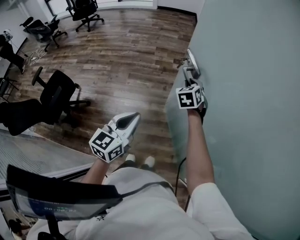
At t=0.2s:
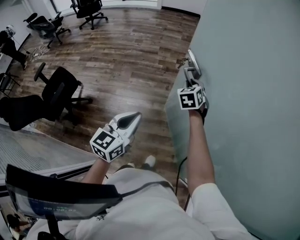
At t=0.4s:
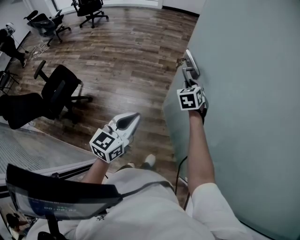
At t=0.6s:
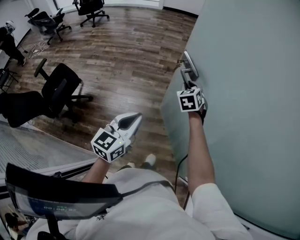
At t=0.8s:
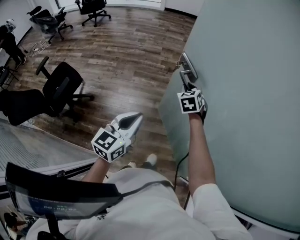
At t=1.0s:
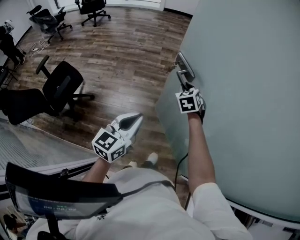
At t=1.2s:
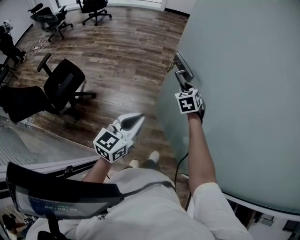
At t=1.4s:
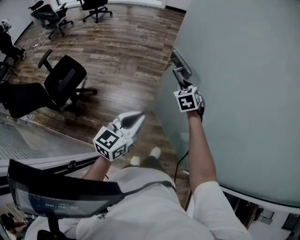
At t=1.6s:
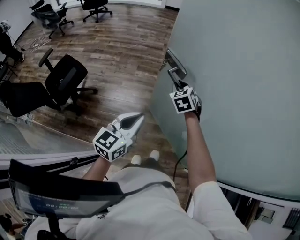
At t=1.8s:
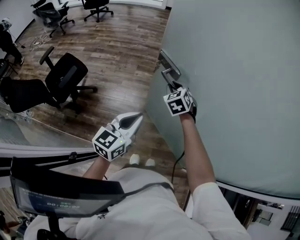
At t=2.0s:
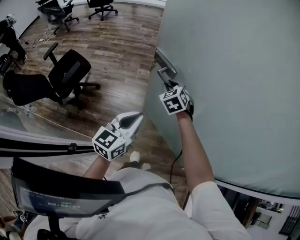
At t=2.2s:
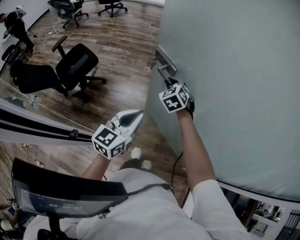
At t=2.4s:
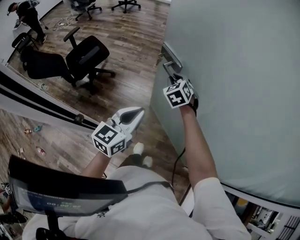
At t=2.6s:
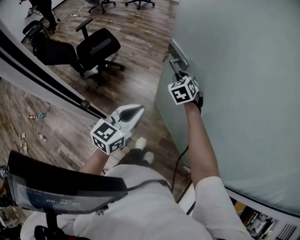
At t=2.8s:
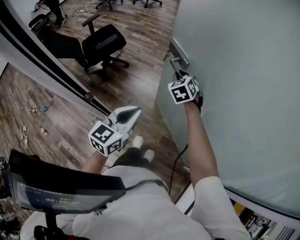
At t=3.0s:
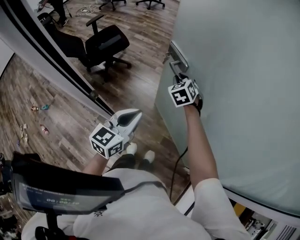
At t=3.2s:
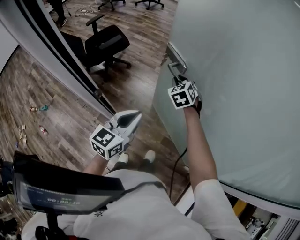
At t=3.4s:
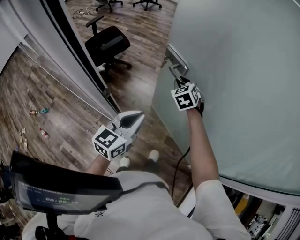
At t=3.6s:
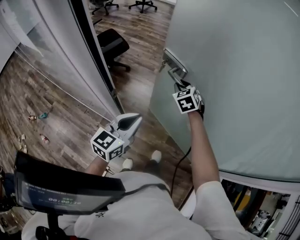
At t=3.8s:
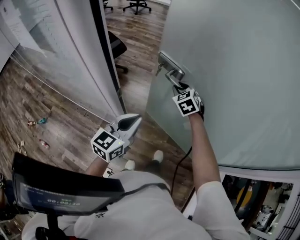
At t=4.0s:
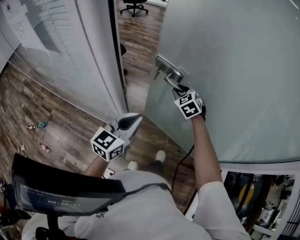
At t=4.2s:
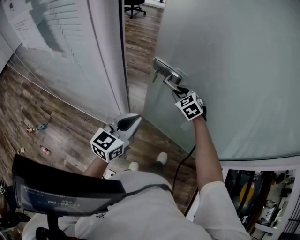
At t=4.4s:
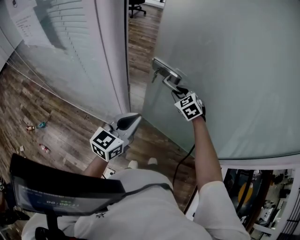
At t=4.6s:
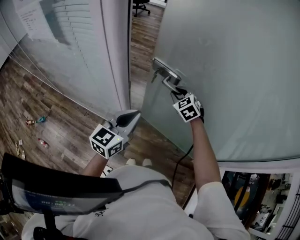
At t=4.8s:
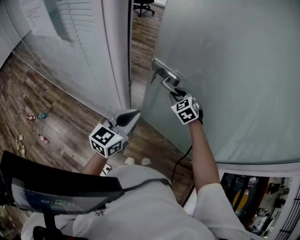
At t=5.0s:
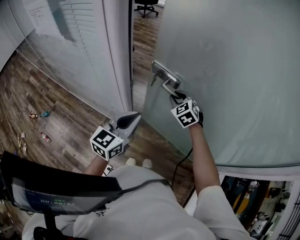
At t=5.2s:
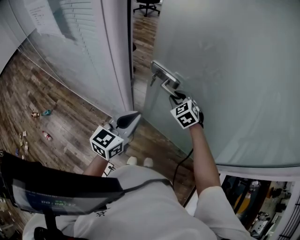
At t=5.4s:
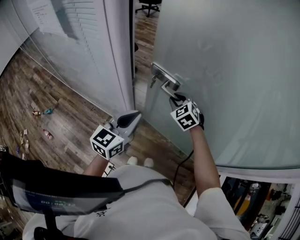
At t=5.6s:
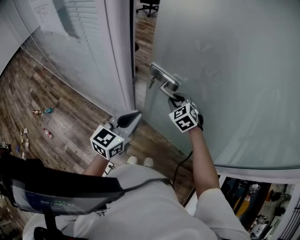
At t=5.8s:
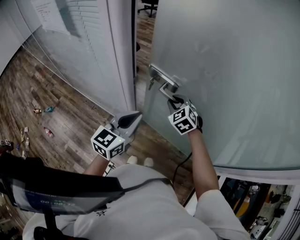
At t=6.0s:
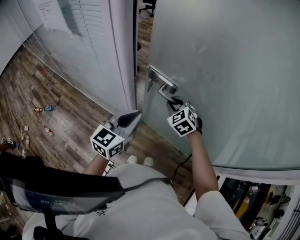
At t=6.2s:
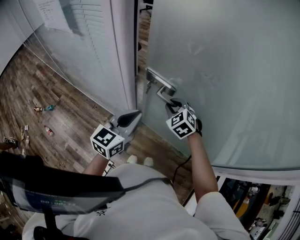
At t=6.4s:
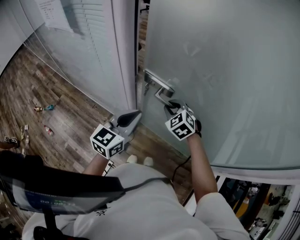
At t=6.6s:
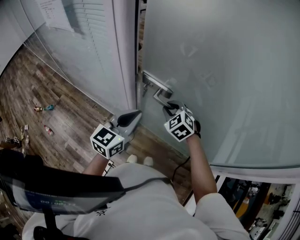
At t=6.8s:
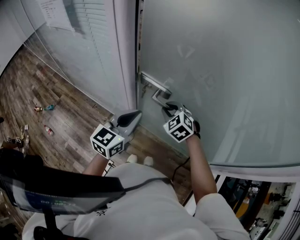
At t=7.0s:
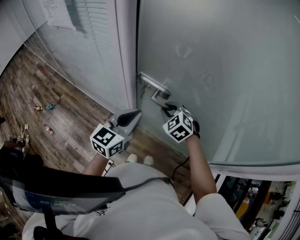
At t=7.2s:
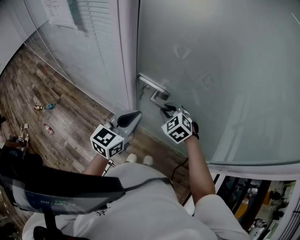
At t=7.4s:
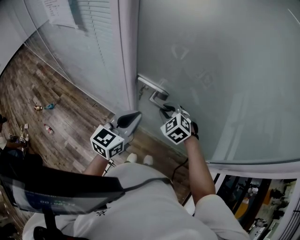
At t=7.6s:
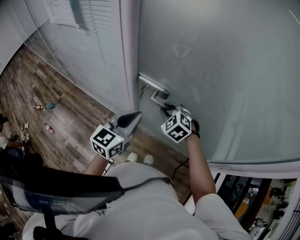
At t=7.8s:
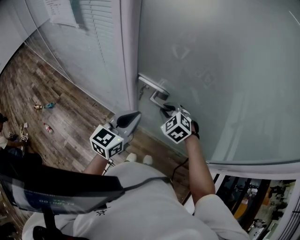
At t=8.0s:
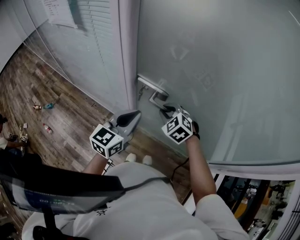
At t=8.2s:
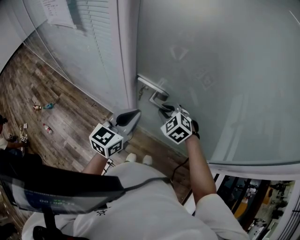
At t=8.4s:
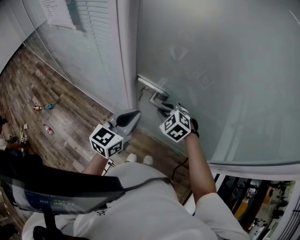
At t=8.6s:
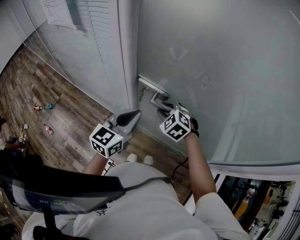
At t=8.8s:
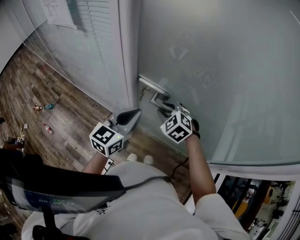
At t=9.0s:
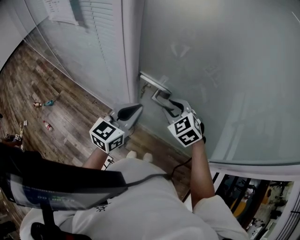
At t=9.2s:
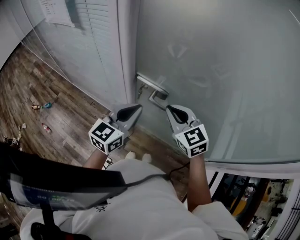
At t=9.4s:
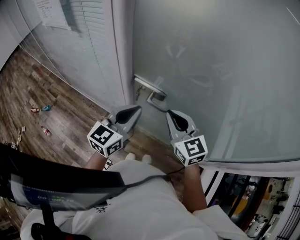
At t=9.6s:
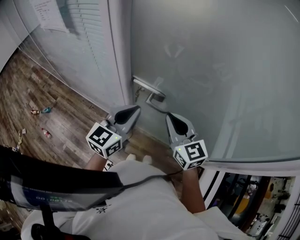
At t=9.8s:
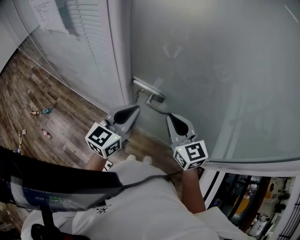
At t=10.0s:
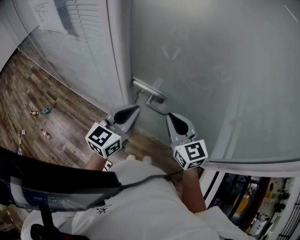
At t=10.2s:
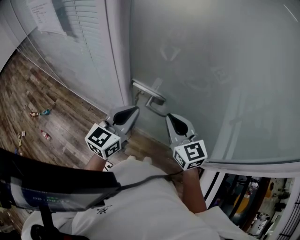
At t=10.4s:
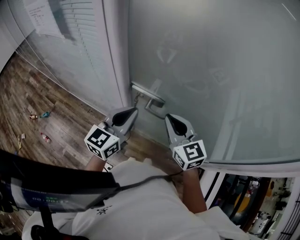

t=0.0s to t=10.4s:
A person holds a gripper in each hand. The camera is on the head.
t=0.0s to t=1.4s: The two grippers go about 20 cm backward and to the left.
t=1.4s to t=3.0s: The right gripper heads backward and to the left, covering about 25 cm, and swivels about 20 degrees; the left gripper heads backward, covering some 25 cm, and swivels about 20 degrees.
t=3.0s to t=4.4s: The left gripper travels to the left and backward by about 20 cm; the right gripper goes approximately 20 cm backward and to the left.
t=4.4s to t=6.0s: The right gripper is displaced backward by approximately 10 cm.
t=6.0s to t=7.4s: The right gripper shifts approximately 10 cm backward.
t=7.4s to t=9.0s: The right gripper shifts some 5 cm upward.
t=9.0s to t=10.4s: The right gripper goes roughly 5 cm upward, changes its angle by some 40 degrees, and closes.

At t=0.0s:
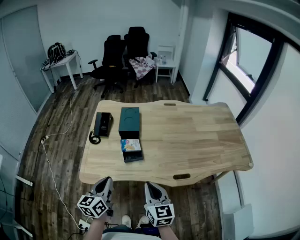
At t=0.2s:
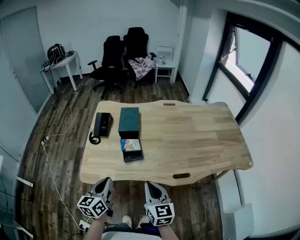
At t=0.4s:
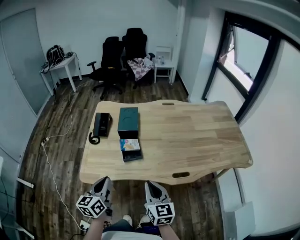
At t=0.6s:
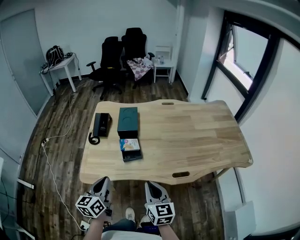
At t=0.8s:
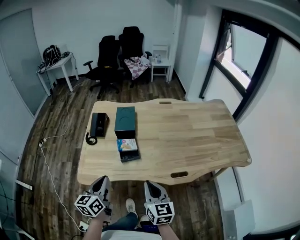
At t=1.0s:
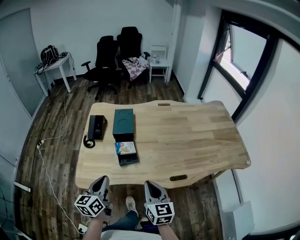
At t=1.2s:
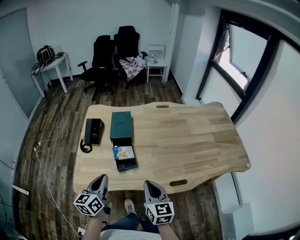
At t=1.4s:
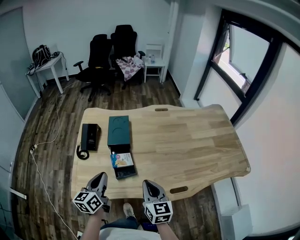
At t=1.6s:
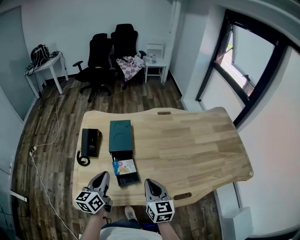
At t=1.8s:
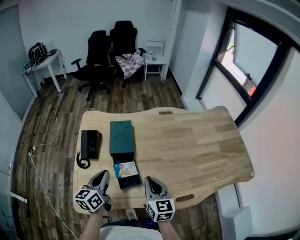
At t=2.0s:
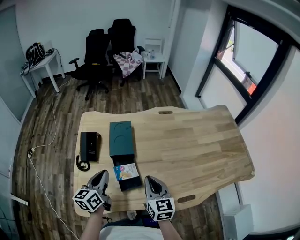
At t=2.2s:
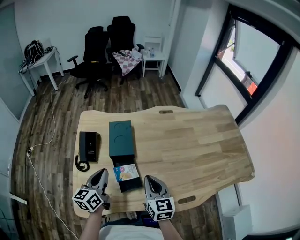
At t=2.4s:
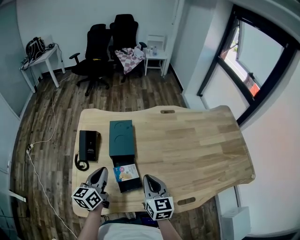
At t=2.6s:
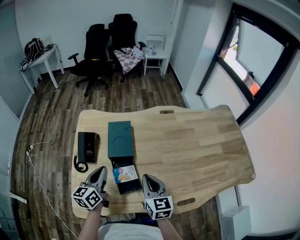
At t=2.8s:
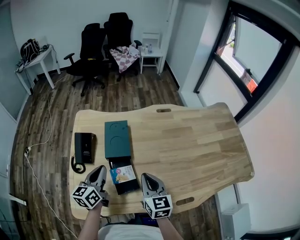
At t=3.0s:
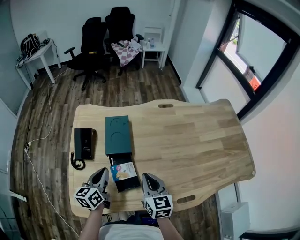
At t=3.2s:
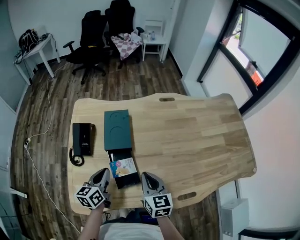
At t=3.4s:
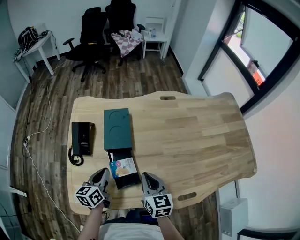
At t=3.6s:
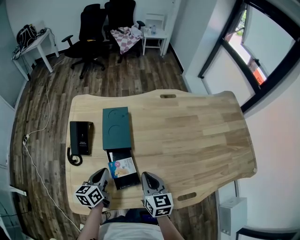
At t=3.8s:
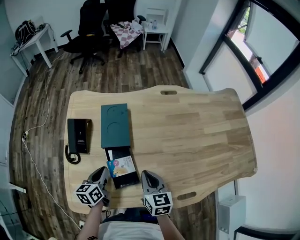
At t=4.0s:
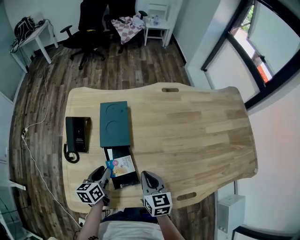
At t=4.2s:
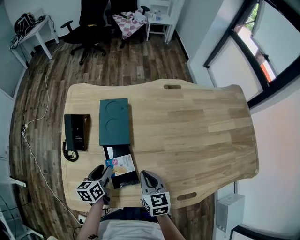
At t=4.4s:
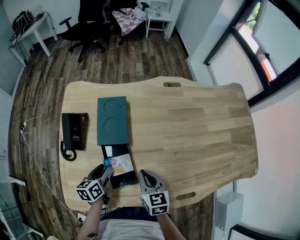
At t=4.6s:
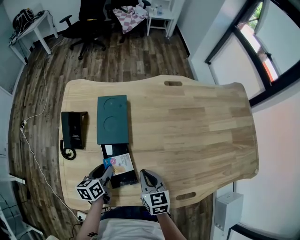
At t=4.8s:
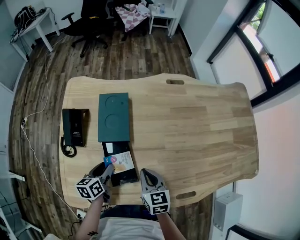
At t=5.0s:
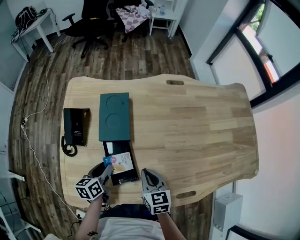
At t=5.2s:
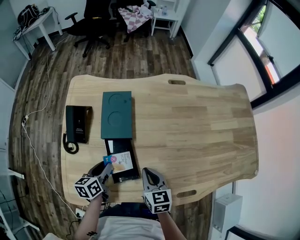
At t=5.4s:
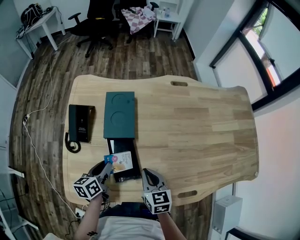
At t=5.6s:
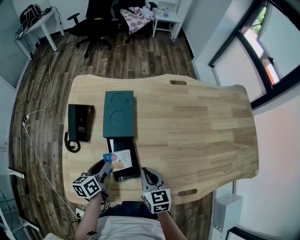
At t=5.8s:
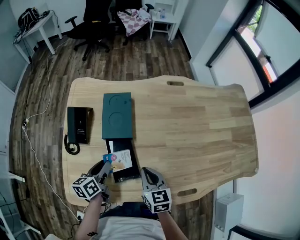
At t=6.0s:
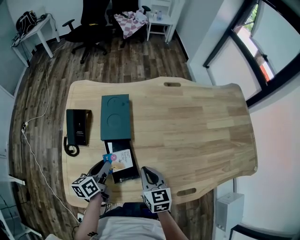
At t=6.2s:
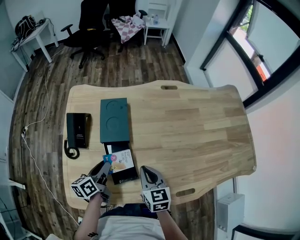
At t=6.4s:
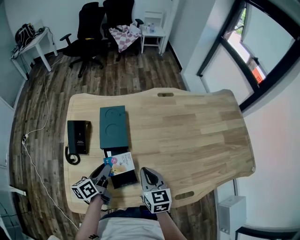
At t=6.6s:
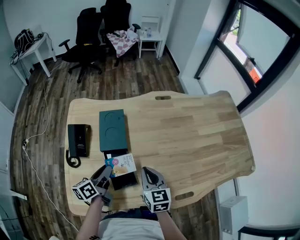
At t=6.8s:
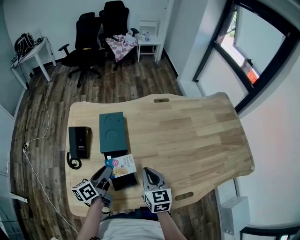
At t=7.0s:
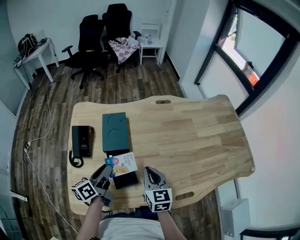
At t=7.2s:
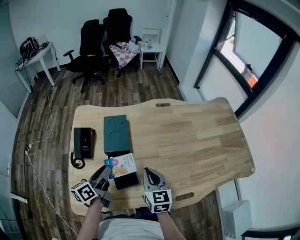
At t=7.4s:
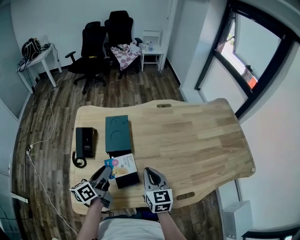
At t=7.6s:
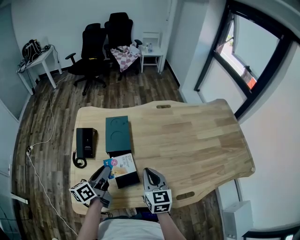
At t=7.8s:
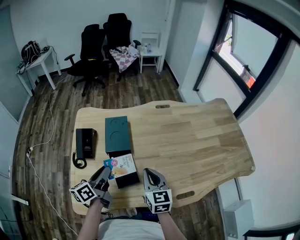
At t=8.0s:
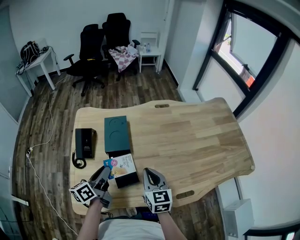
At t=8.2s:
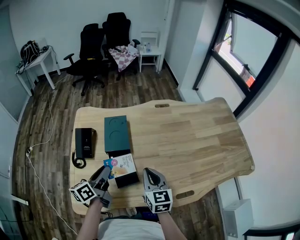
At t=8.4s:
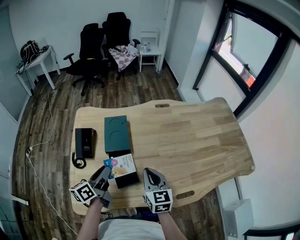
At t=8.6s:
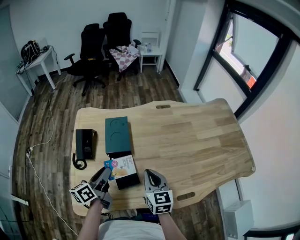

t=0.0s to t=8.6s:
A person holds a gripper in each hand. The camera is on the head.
t=0.0s to t=1.4s: The grippers both shift forward by approximately 15 cm.
t=1.4s to t=2.8s: Both grippers travel together forward, about 15 cm.
t=2.8s to t=4.4s: Both grippers travel together downward, roughly 15 cm. The left gripper rotates roughly 30 degrees, and opens its fingers.
t=4.4s to t=5.8s: The grippers stay close to where they were, moving slightly.
t=5.8s to t=7.2s: The grippers both shift upward by approximately 10 cm.
t=7.2s to t=8.6s: There are only small adjustments of the grippers.

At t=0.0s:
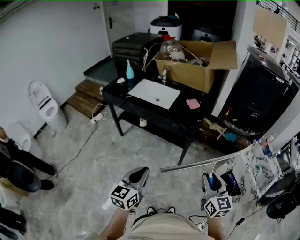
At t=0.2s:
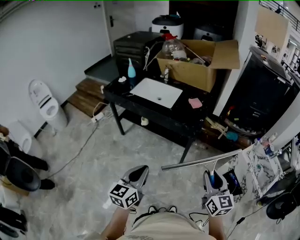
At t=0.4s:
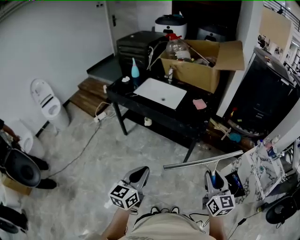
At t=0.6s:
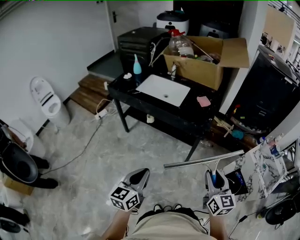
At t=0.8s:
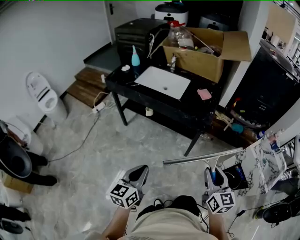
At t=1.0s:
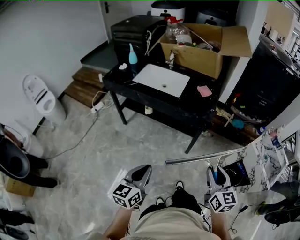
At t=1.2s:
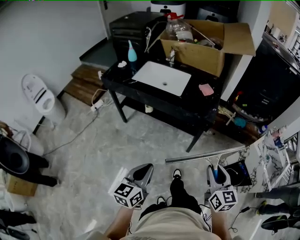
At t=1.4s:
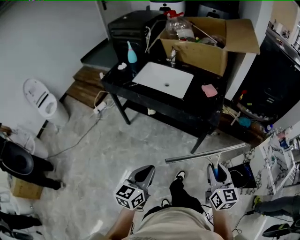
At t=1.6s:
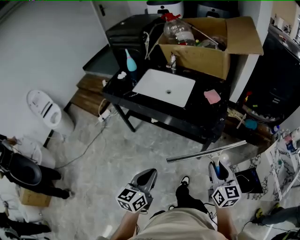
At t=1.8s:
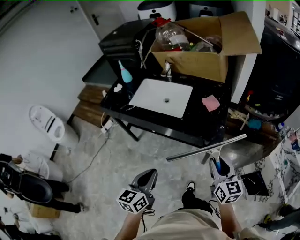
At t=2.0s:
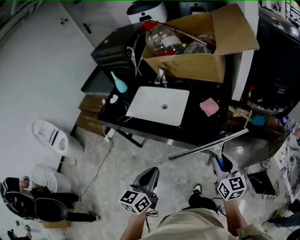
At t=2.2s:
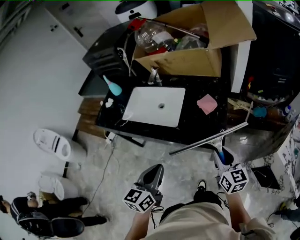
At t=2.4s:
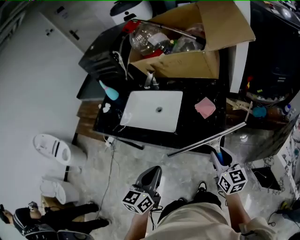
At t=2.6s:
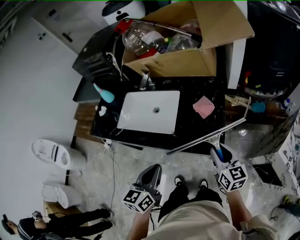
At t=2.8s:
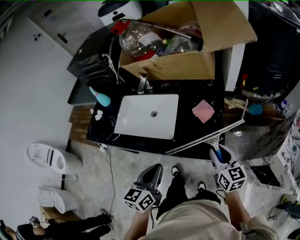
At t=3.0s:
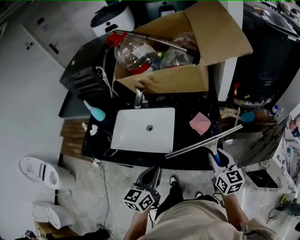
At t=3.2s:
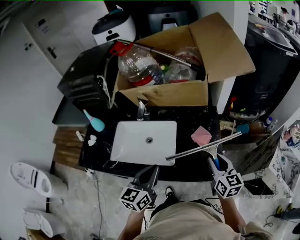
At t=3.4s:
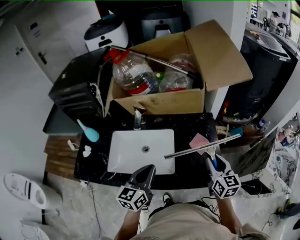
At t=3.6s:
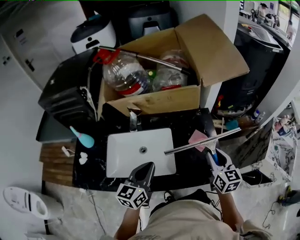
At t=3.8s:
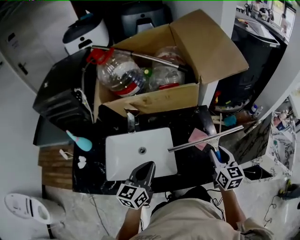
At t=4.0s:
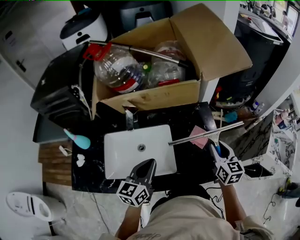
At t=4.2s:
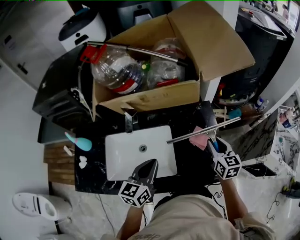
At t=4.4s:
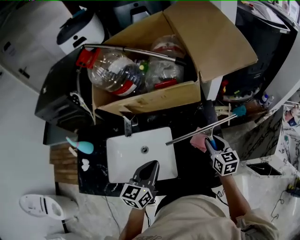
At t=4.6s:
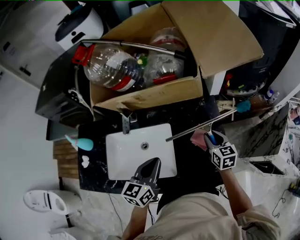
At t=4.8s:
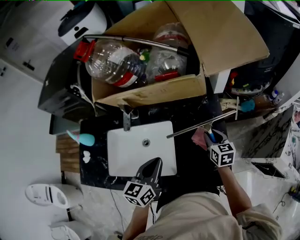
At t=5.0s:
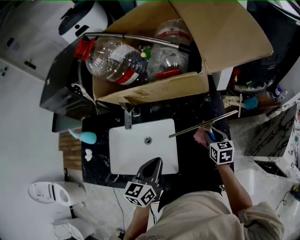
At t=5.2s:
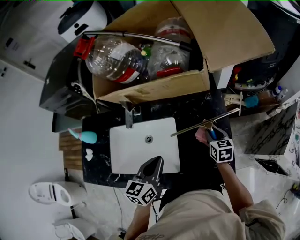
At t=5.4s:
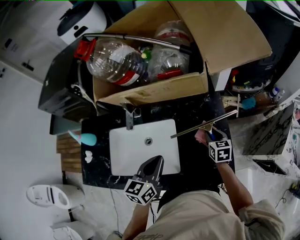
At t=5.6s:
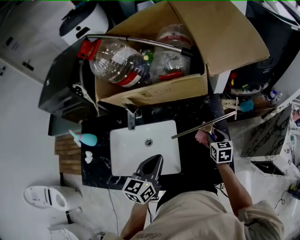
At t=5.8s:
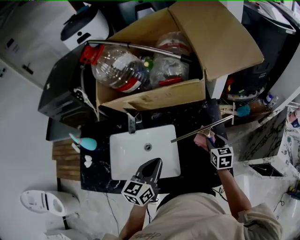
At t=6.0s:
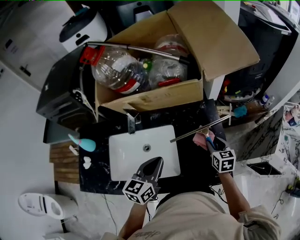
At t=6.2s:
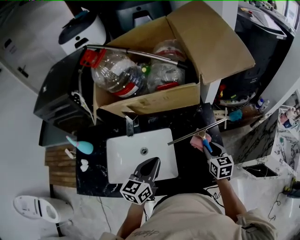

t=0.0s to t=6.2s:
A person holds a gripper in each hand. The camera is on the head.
t=0.0s to t=1.6s: The grippers both shift forward and to the left by about 15 cm.
t=1.6s to t=3.2s: Both grippers move forward, roughly 35 cm.
t=3.2s to t=4.6s: The left gripper goes about 15 cm forward. Meanwhile the right gripper goes approximately 20 cm forward and downward.
t=4.6s to t=6.2s: The right gripper goes some 5 cm backward.
